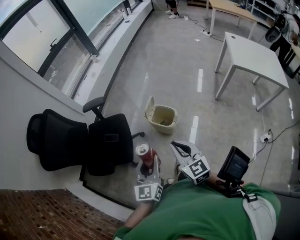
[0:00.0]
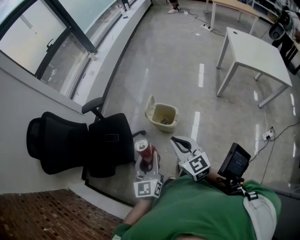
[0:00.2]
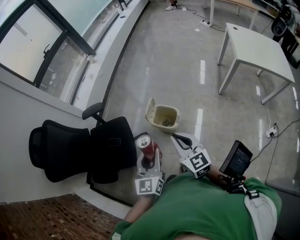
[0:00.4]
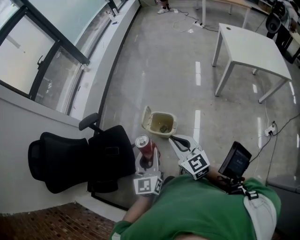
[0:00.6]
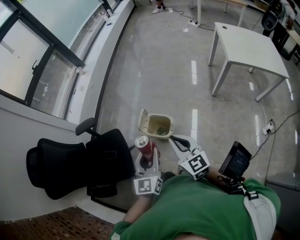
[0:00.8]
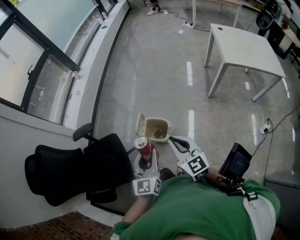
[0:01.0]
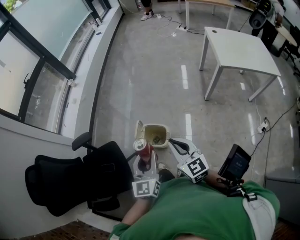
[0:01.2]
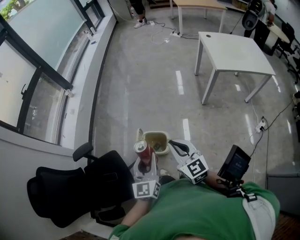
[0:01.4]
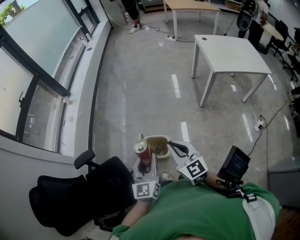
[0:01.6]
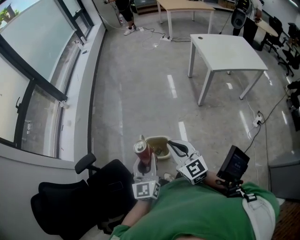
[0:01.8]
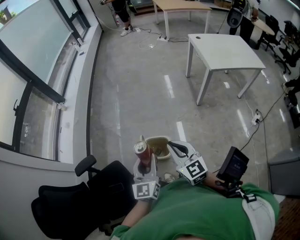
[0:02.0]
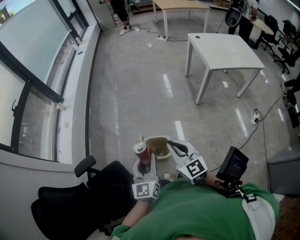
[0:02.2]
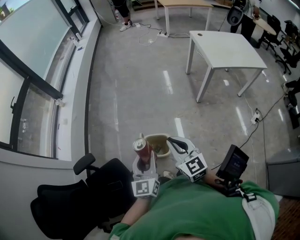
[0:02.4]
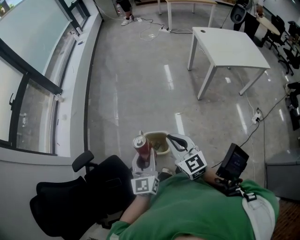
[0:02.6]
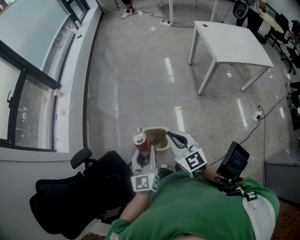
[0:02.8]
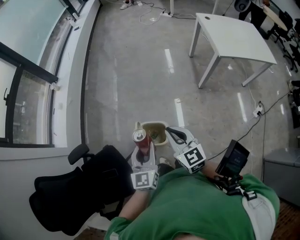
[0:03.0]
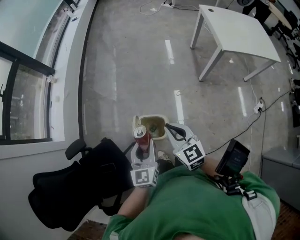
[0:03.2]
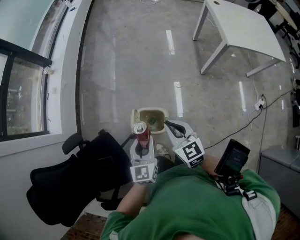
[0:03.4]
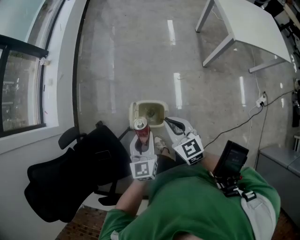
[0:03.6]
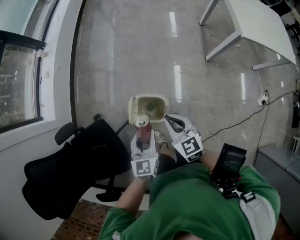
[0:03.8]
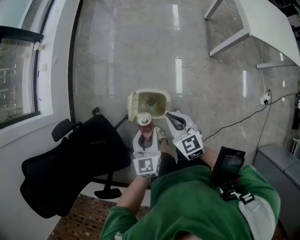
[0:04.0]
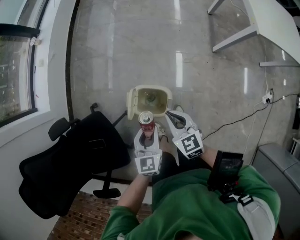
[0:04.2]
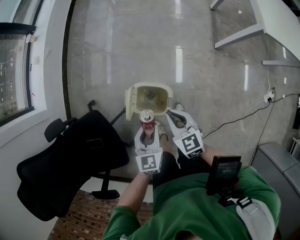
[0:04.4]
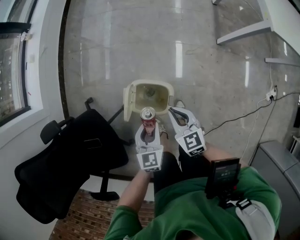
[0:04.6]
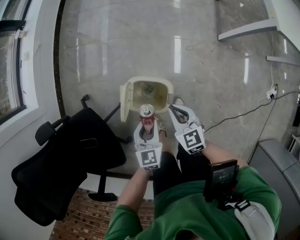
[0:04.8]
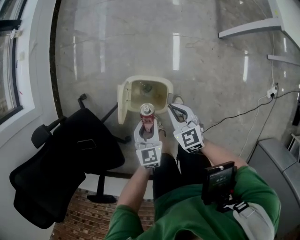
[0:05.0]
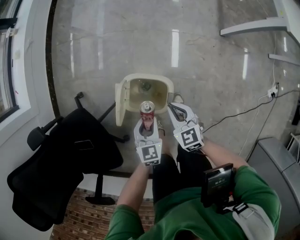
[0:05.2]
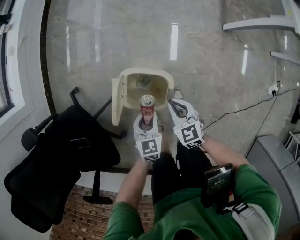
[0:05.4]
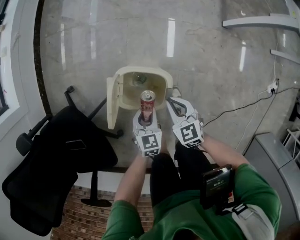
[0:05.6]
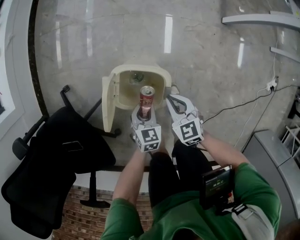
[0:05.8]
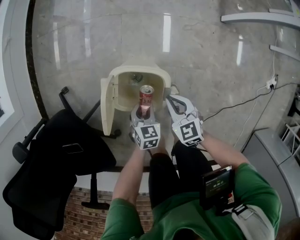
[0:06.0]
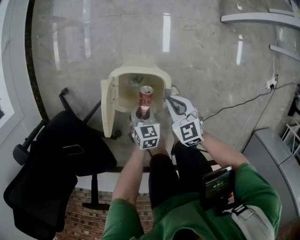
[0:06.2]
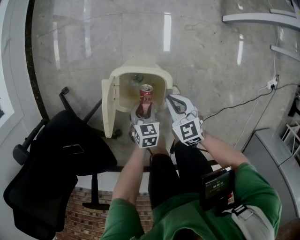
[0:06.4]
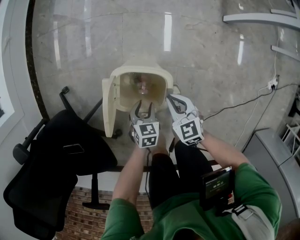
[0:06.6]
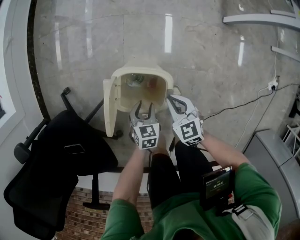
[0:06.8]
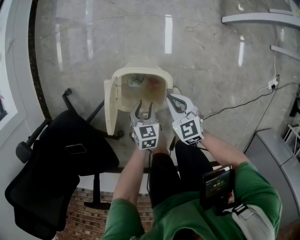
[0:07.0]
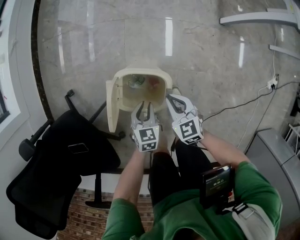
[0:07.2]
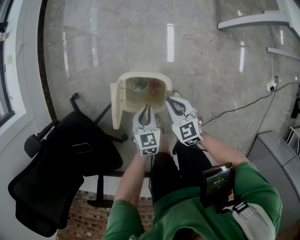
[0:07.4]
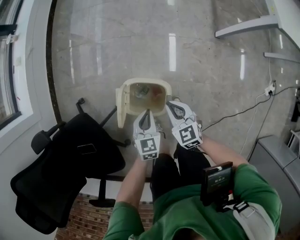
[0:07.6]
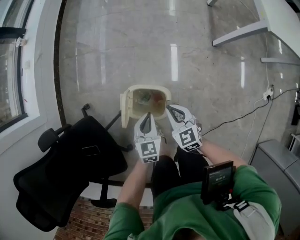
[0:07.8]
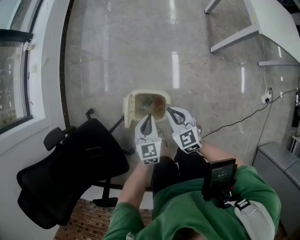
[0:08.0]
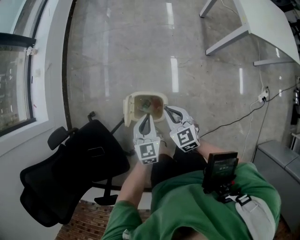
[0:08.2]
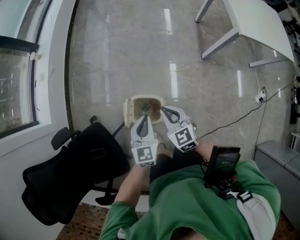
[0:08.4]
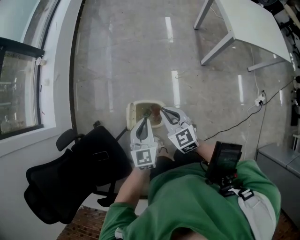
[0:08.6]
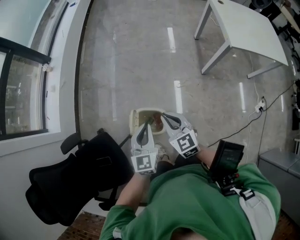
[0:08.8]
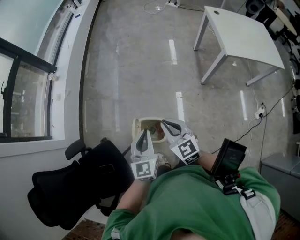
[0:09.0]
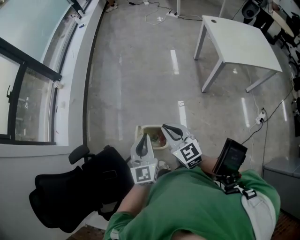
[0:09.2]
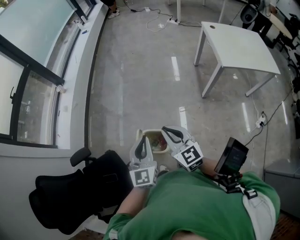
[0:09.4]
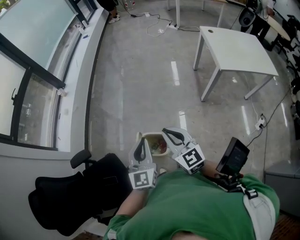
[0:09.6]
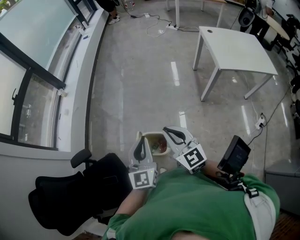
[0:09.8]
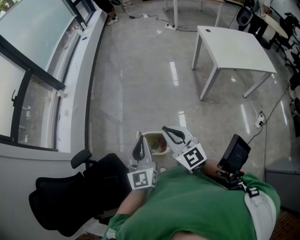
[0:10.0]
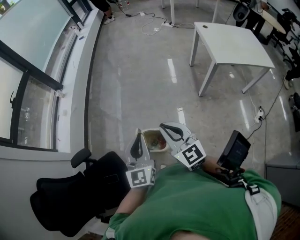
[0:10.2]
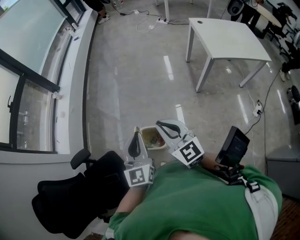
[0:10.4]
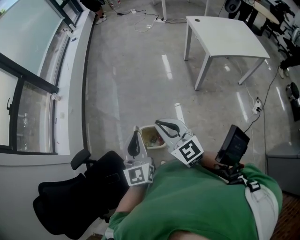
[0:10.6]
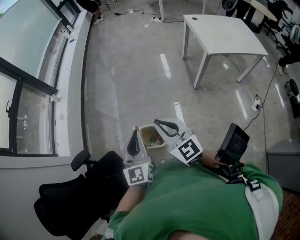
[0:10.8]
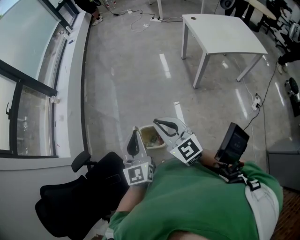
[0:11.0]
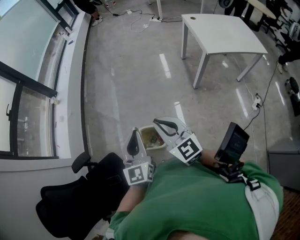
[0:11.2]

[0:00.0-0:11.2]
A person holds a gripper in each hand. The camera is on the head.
0:00.0 to 0:01.6: Both grippers travel together forward, roughly 25 cm.
0:01.6 to 0:03.2: The left gripper shifts about 10 cm downward and forward. The right gripper shifts some 10 cm forward and downward.
0:03.2 to 0:04.8: Both grippers move downward, about 30 cm. The left gripper swivels approximately 20 degrees.
0:04.8 to 0:06.4: The two grippers go about 20 cm downward. The left gripper rotates some 30 degrees.
0:06.4 to 0:08.0: Both grippers move upward, approximately 25 cm. The left gripper turns by roughly 30 degrees, and closes its fingers.
0:08.0 to 0:09.6: The grippers both shift upward by some 35 cm. The left gripper tips its fingers upward by some 30 degrees. Meanwhile the right gripper changes its angle by roughly 30 degrees.
0:09.6 to 0:11.2: The grippers stay close to where they were, moving slightly.

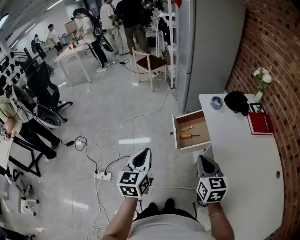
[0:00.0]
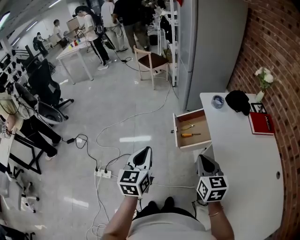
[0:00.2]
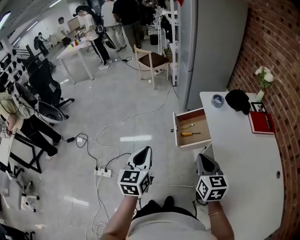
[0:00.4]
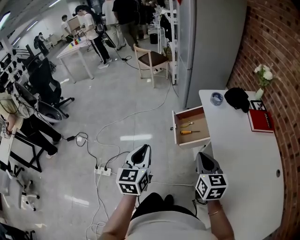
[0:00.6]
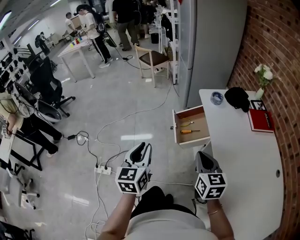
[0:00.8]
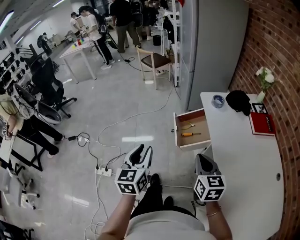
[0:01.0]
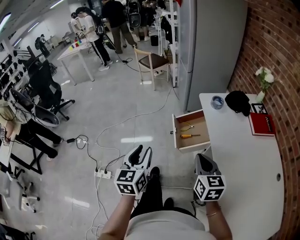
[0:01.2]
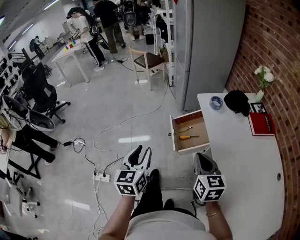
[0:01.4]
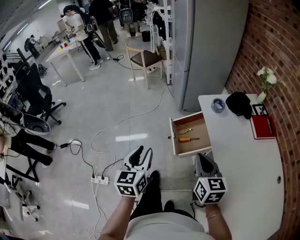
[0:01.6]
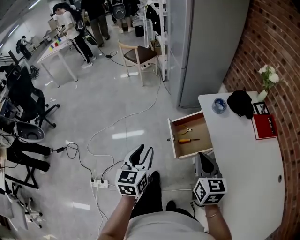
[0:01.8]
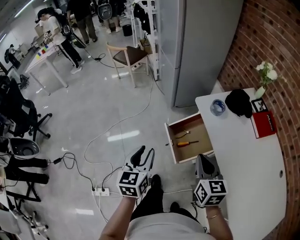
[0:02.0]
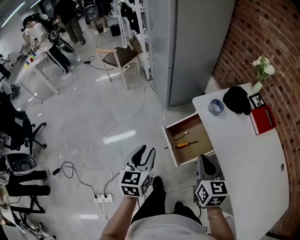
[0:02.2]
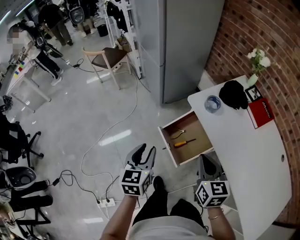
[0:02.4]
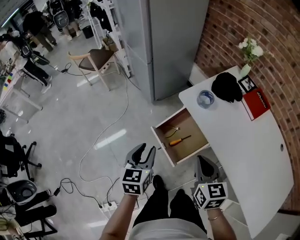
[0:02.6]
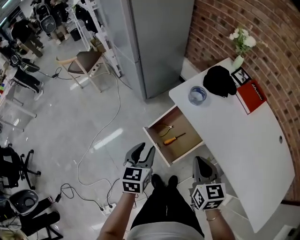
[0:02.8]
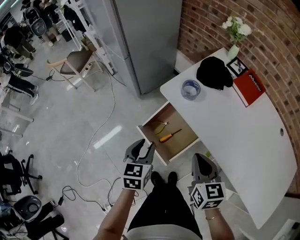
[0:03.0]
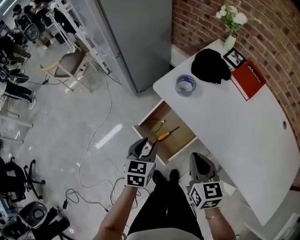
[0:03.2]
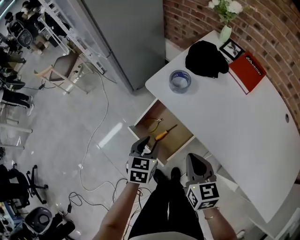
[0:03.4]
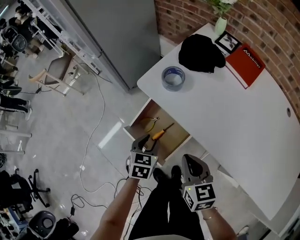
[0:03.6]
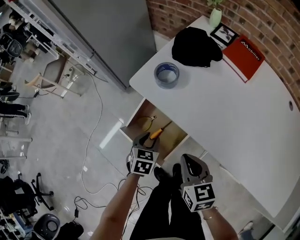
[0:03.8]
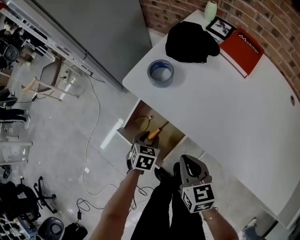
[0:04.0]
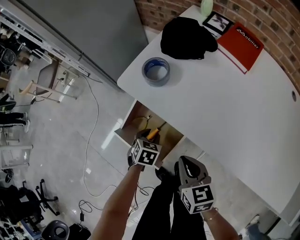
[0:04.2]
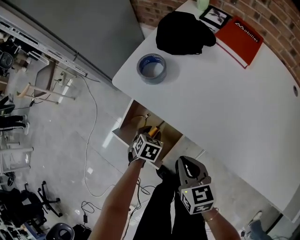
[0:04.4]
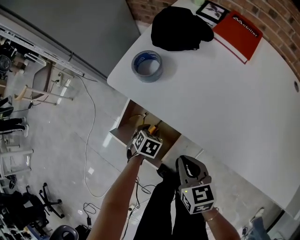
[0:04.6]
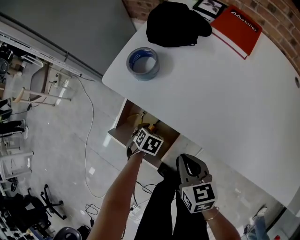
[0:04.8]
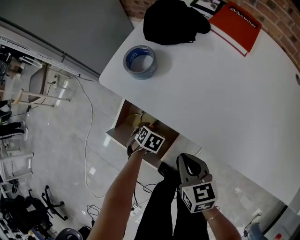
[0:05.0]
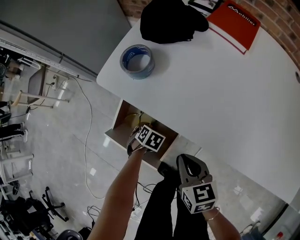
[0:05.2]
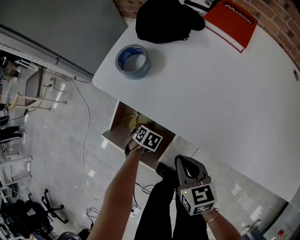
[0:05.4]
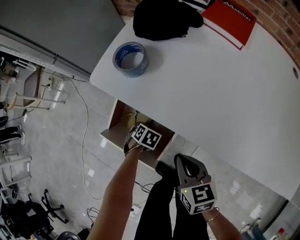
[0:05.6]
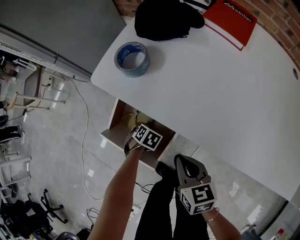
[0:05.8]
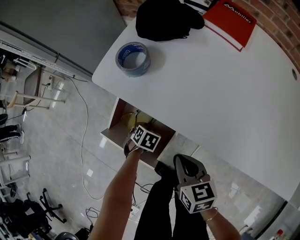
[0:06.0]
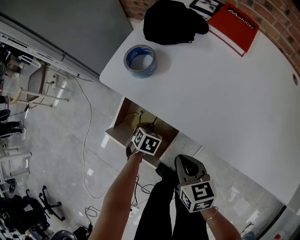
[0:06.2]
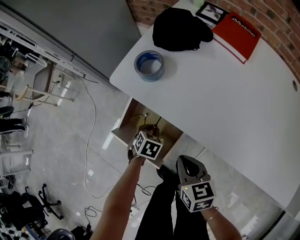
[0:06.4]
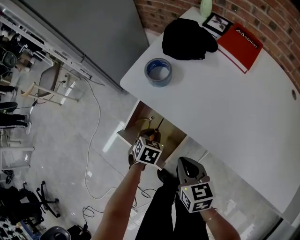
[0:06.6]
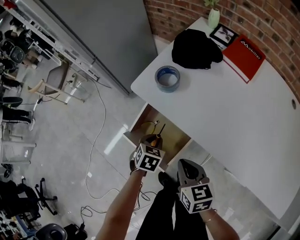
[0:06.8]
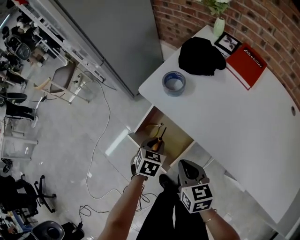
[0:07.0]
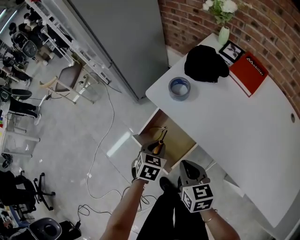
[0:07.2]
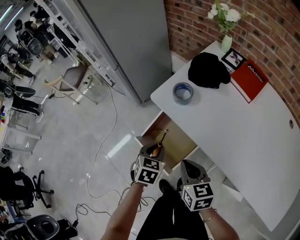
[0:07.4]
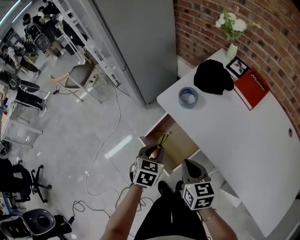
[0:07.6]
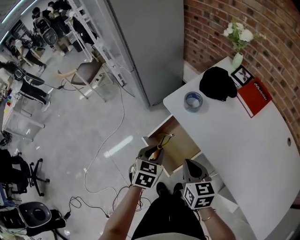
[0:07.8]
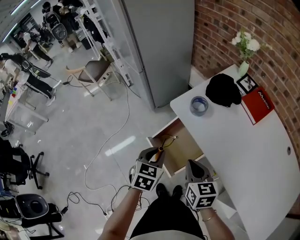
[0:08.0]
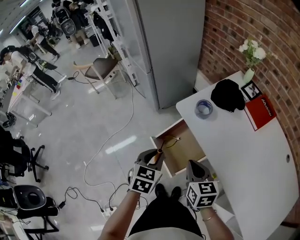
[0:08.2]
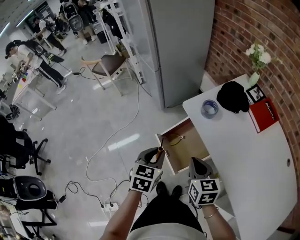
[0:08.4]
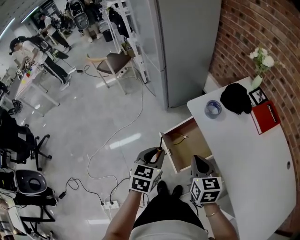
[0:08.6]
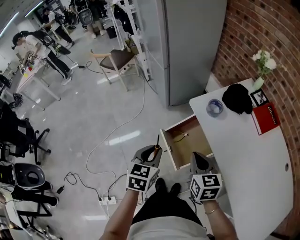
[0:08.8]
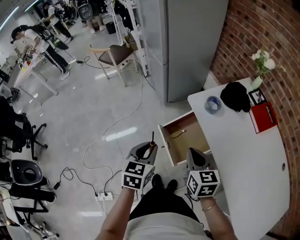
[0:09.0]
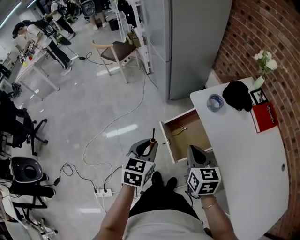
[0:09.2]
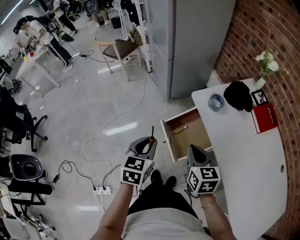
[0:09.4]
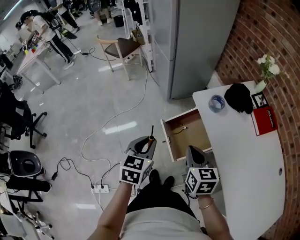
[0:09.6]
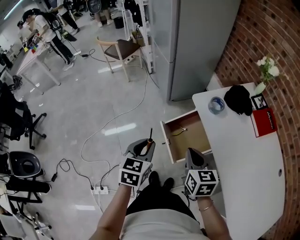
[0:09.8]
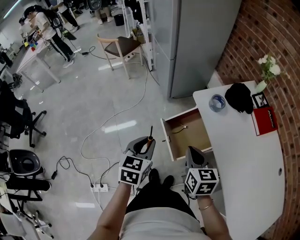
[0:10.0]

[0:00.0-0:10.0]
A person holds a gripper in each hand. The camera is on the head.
0:00.0 to 0:01.4: The left gripper opens its fingers.
0:01.4 to 0:02.8: The right gripper changes place by about 15 cm, and turns by about 30 degrees. The left gripper changes place by about 30 cm, and rotates about 40 degrees.
0:02.8 to 0:04.2: The left gripper goes some 30 cm downward and to the right, and angles its fingers downward, by about 30 degrees. Meanwhile the right gripper goes about 15 cm downward.
0:04.2 to 0:05.8: The right gripper is displaced downward by roughly 5 cm. Meanwhile the left gripper is displaced downward by about 10 cm, and rotates about 20 degrees.
0:05.8 to 0:07.2: The right gripper moves upward, roughly 10 cm. Meanwhile the left gripper heads upward, covering approximately 25 cm, and changes its angle by about 30 degrees.
0:07.2 to 0:08.6: The right gripper shifts approximately 10 cm upward. The left gripper goes some 20 cm upward, to the left and backward, and rotates approximately 30 degrees.
0:08.6 to 0:10.0: The left gripper goes some 5 cm to the left.

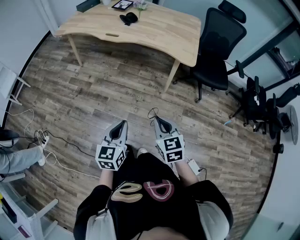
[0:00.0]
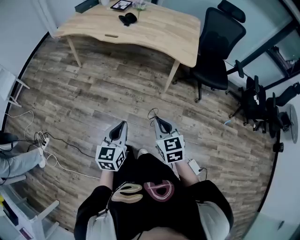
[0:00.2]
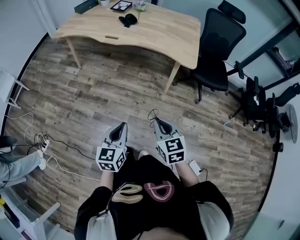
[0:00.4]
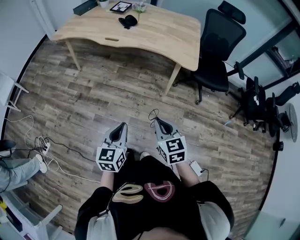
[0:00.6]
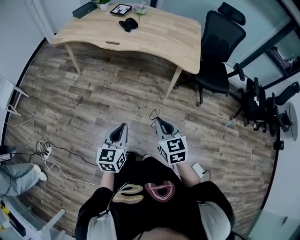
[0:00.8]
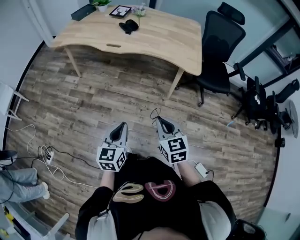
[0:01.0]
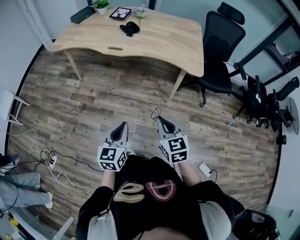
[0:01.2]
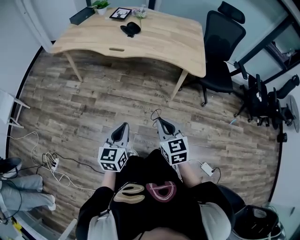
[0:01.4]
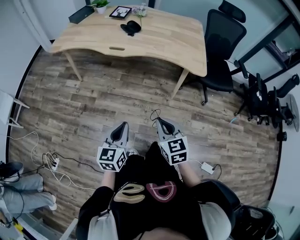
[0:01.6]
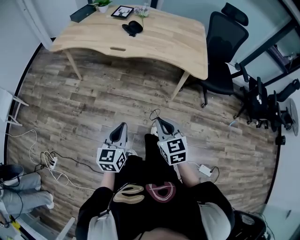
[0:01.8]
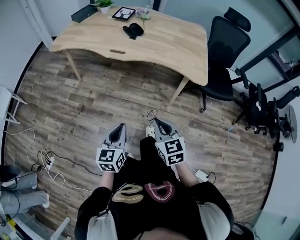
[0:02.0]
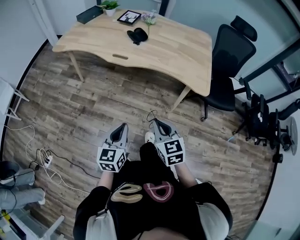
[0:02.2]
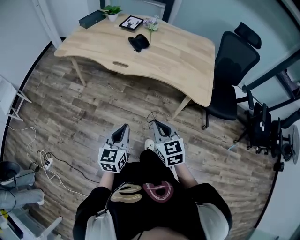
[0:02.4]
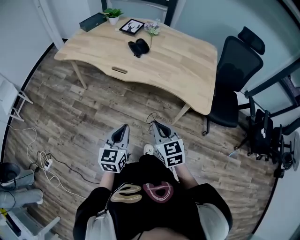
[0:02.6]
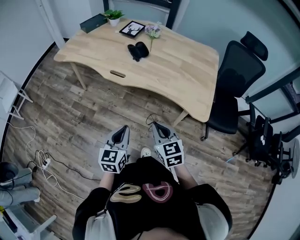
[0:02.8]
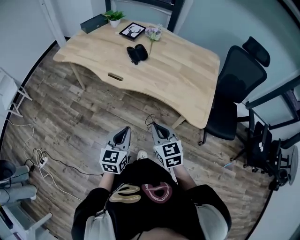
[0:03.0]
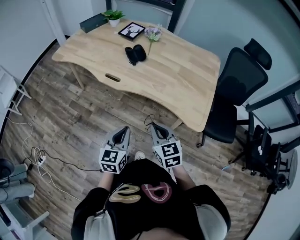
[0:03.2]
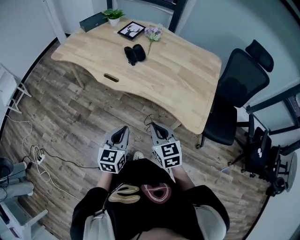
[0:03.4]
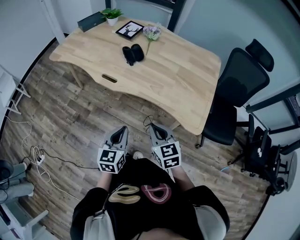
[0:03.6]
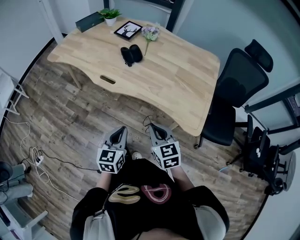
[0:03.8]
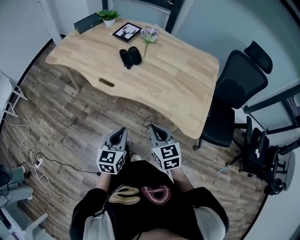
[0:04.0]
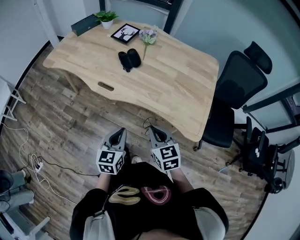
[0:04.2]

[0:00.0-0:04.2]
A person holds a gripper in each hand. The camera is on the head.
0:00.0 to 0:01.4: The grippers both shift forward and to the left by about 15 cm.
0:01.4 to 0:02.8: Both grippers move forward, roughly 20 cm.
0:02.8 to 0:04.2: The grippers both shift forward and to the right by some 15 cm.
